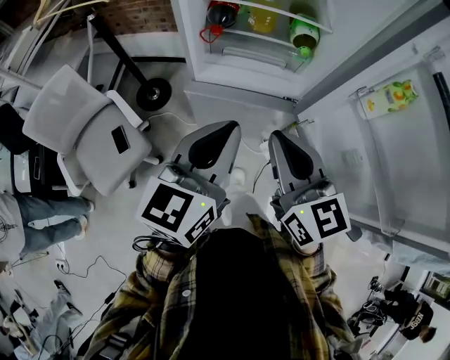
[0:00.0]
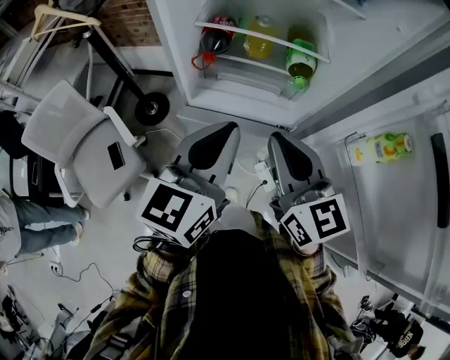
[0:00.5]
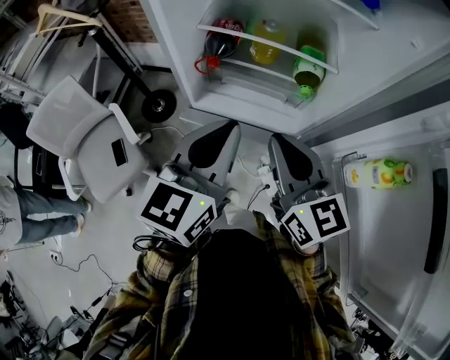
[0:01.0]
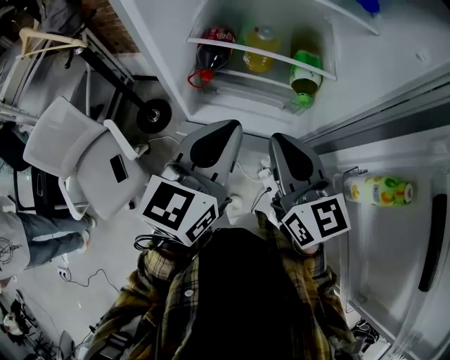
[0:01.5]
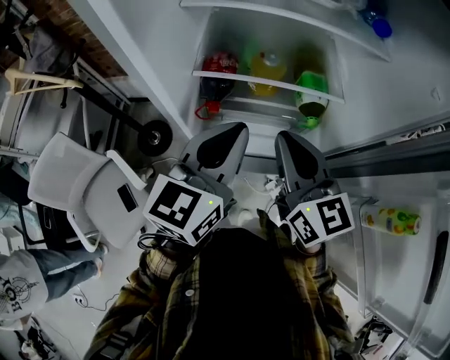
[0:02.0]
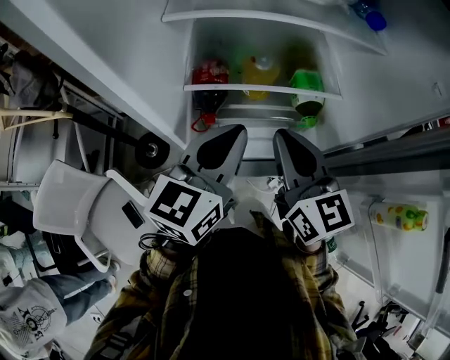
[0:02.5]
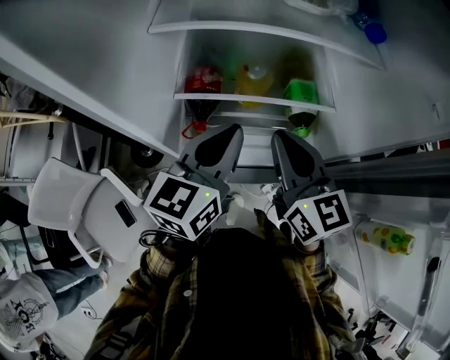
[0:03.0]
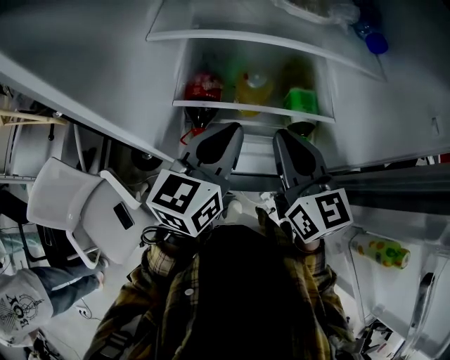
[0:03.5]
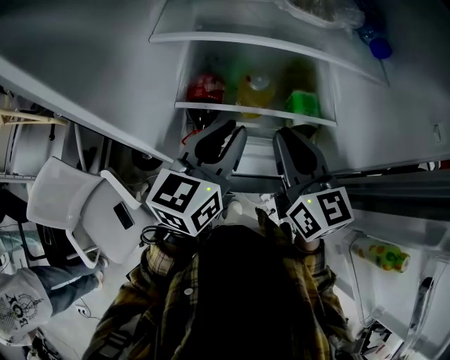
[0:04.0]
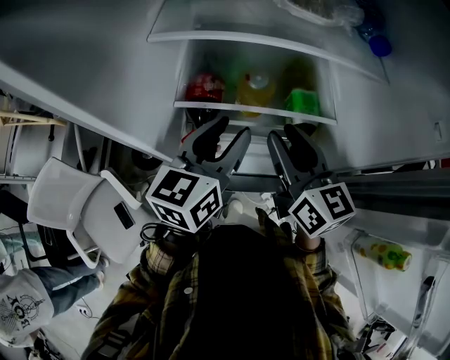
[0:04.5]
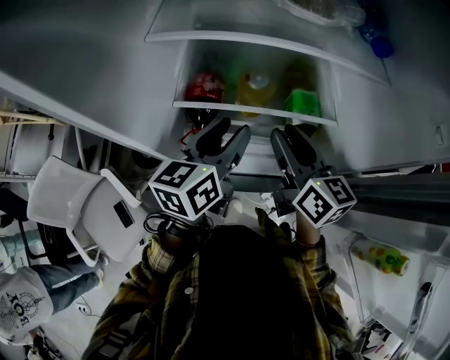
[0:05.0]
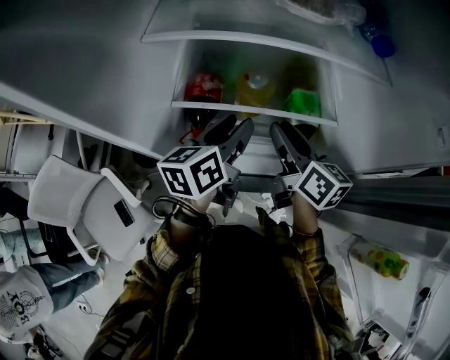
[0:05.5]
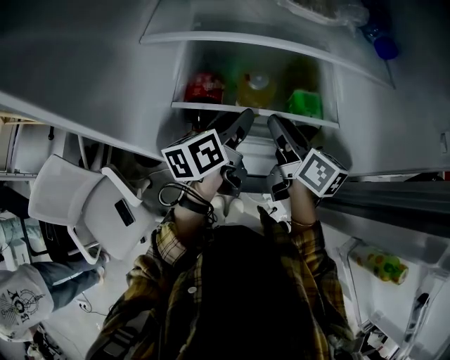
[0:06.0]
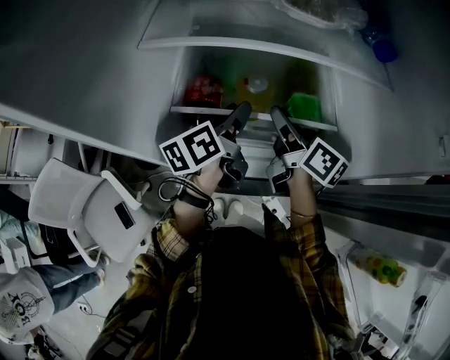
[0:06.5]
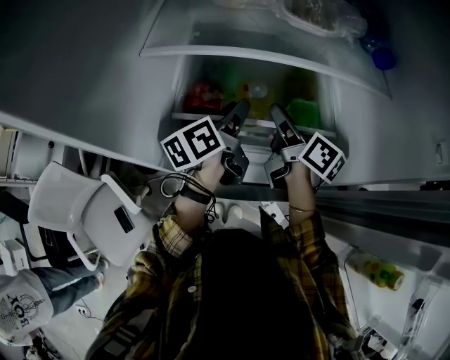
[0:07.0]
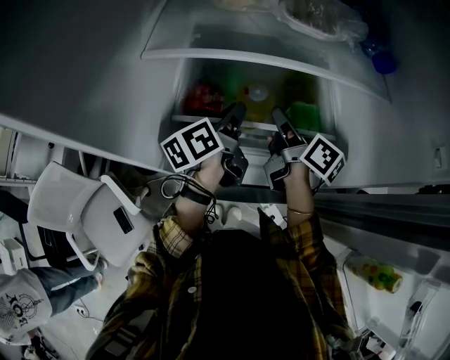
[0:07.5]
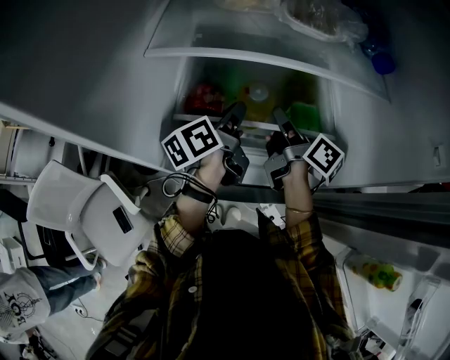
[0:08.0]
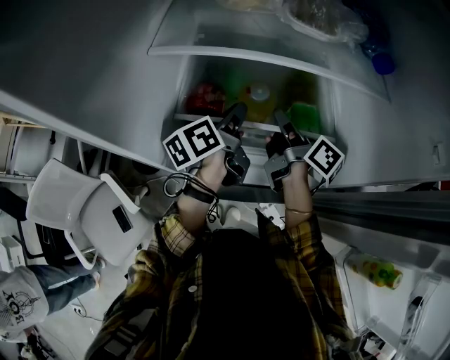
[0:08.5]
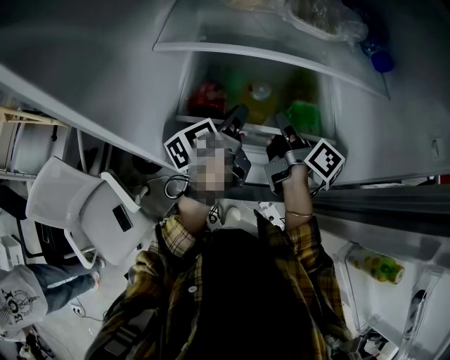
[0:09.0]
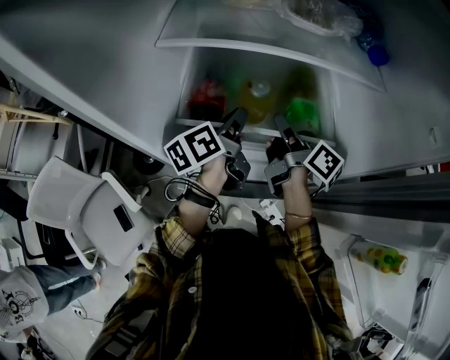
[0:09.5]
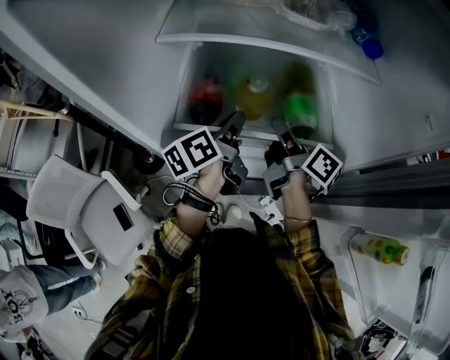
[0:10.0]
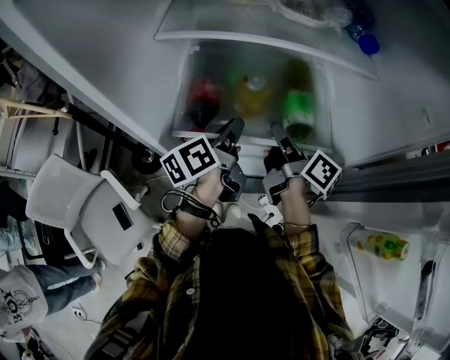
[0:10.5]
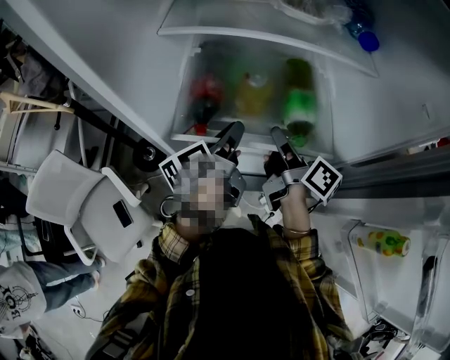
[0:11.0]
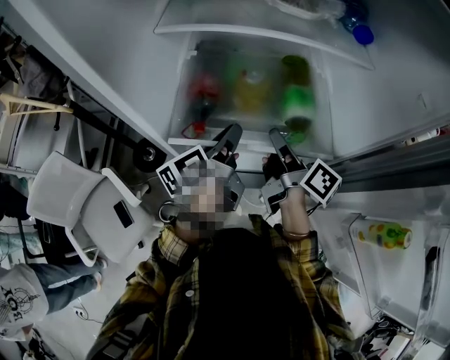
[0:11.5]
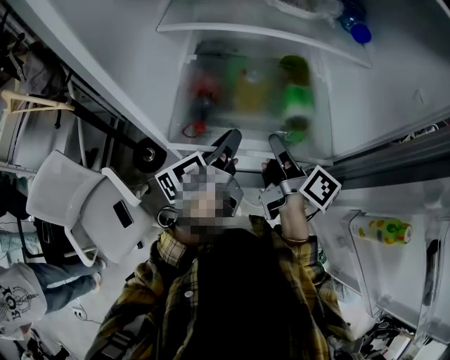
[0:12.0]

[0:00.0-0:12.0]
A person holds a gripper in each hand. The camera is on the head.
0:00.0 to 0:02.0: Both grippers travel together forward, roughly 25 cm.
0:02.0 to 0:04.0: Both grippers move forward, roughly 10 cm.
0:04.0 to 0:06.0: The two grippers go some 10 cm downward and forward. The right gripper turns by some 30 degrees, and opens its fingers. The left gripper turns by some 30 degrees, and opens.
0:06.0 to 0:08.0: The left gripper closes its fingers. The right gripper travels forward by about 5 cm, changes its angle by about 20 degrees, and closes.
0:08.0 to 0:10.0: Both grippers travel together backward, about 5 cm.
0:10.0 to 0:12.0: The two grippers go about 10 cm backward.

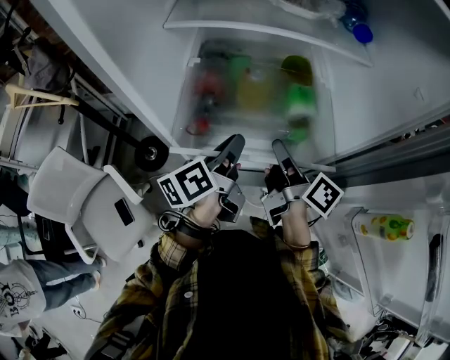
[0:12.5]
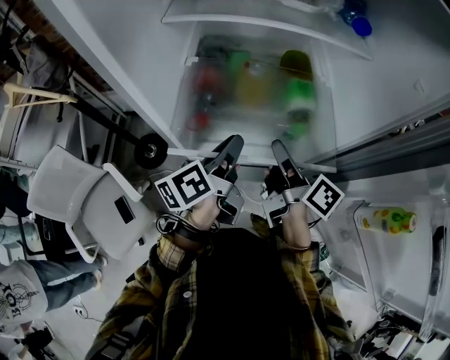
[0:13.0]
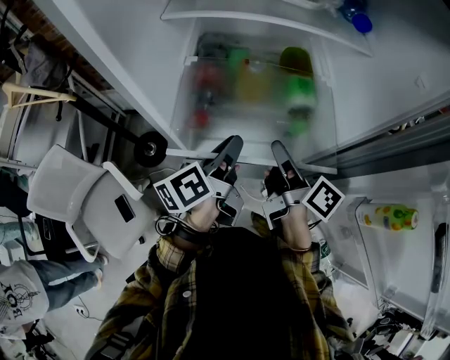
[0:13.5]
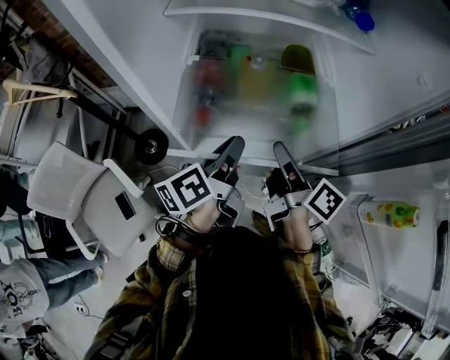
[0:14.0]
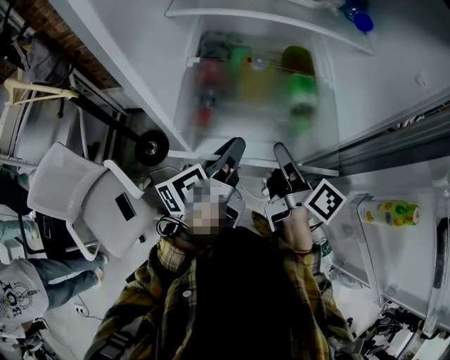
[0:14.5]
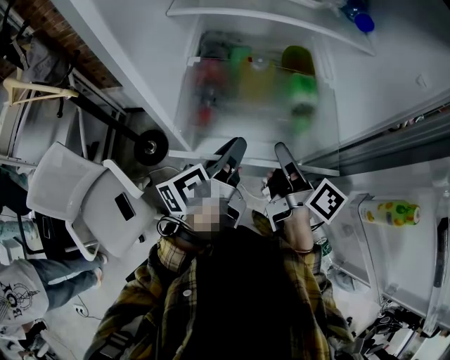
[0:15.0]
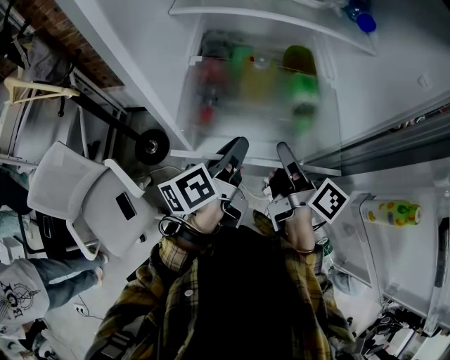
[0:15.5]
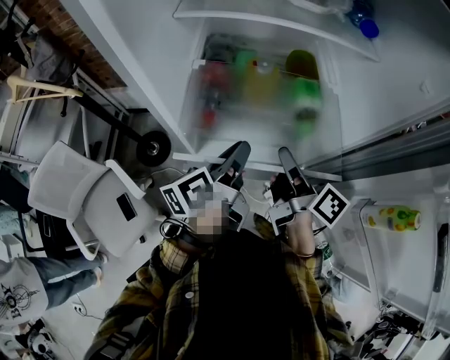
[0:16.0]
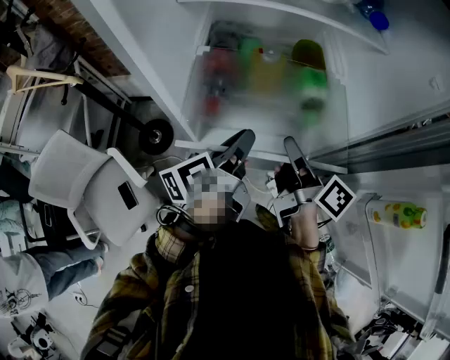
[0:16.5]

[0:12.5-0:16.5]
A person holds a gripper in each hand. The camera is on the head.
0:12.5 to 0:14.5: The grippers stay close to where they were, moving slightly.
0:14.5 to 0:16.5: Both grippers stay about where they are.

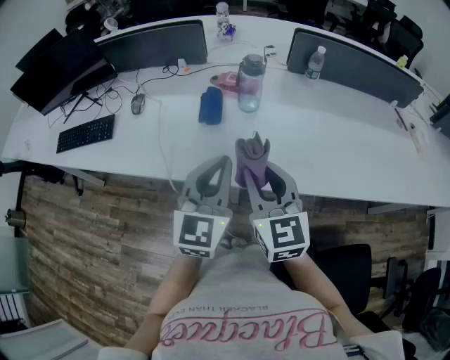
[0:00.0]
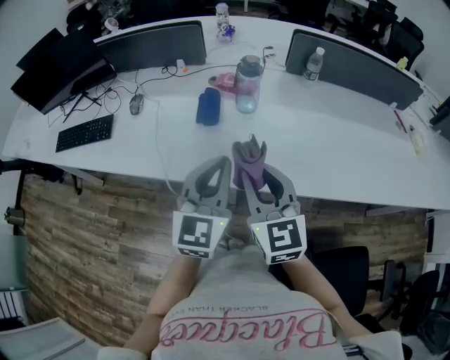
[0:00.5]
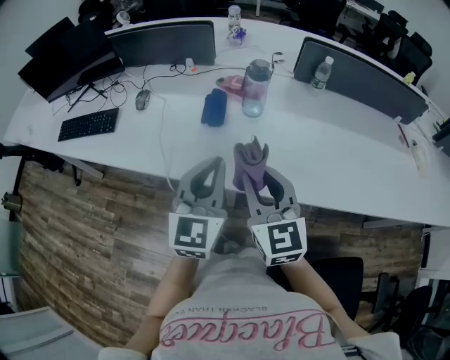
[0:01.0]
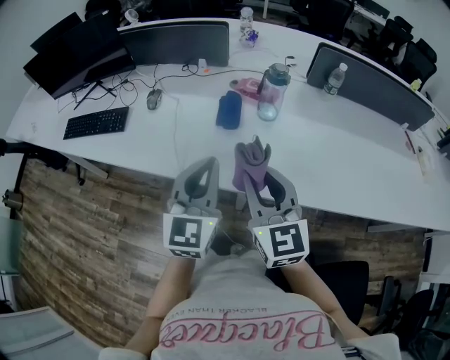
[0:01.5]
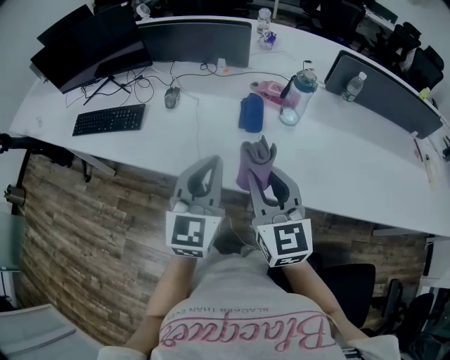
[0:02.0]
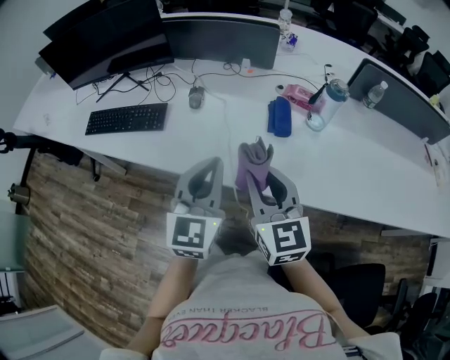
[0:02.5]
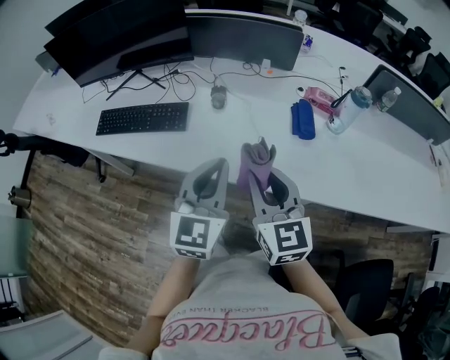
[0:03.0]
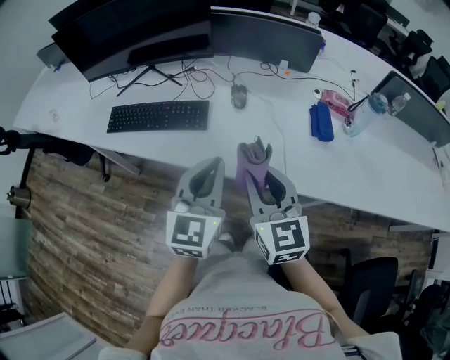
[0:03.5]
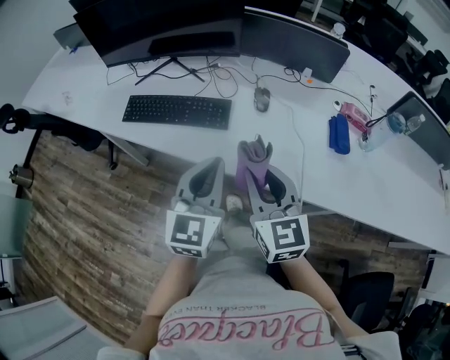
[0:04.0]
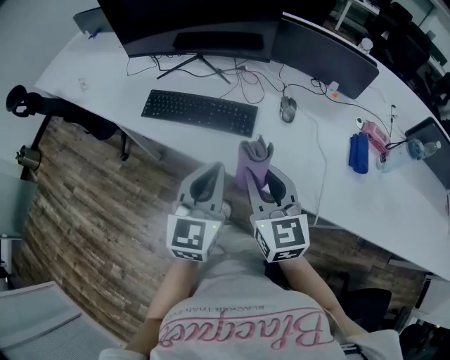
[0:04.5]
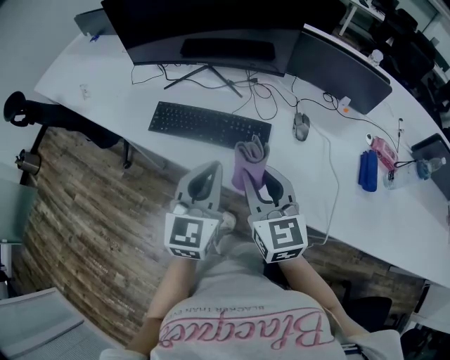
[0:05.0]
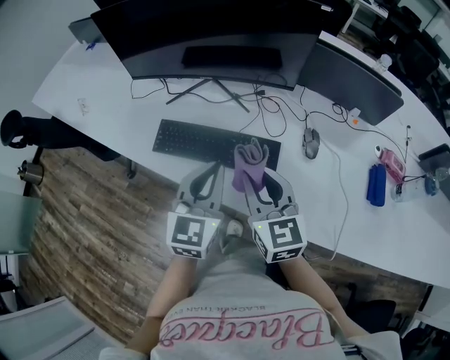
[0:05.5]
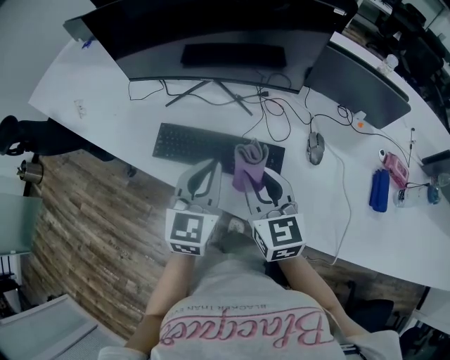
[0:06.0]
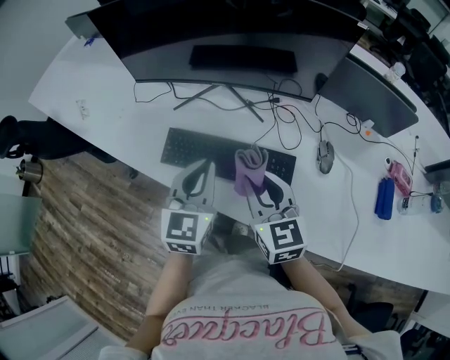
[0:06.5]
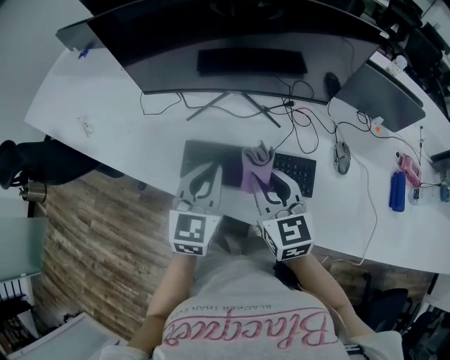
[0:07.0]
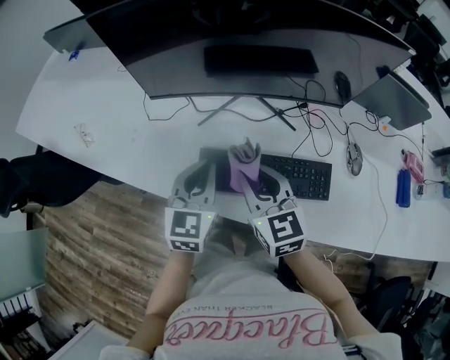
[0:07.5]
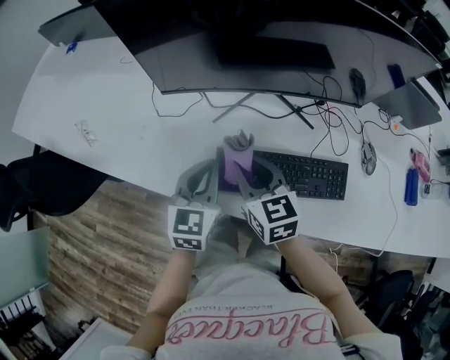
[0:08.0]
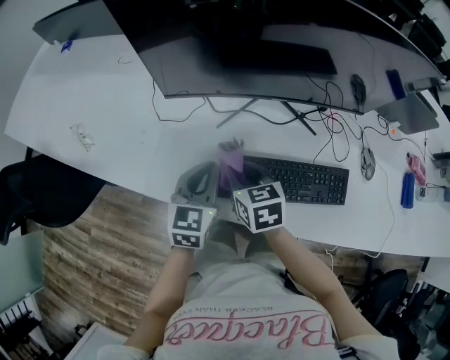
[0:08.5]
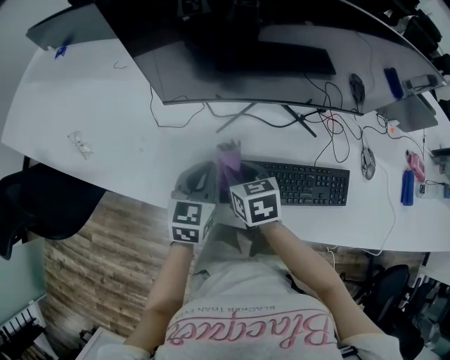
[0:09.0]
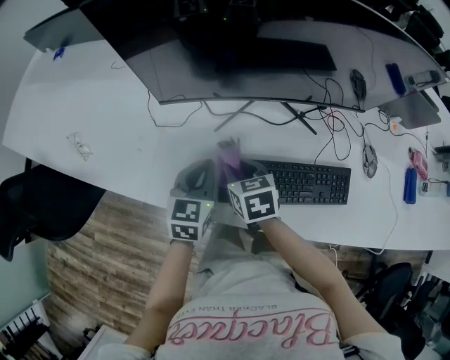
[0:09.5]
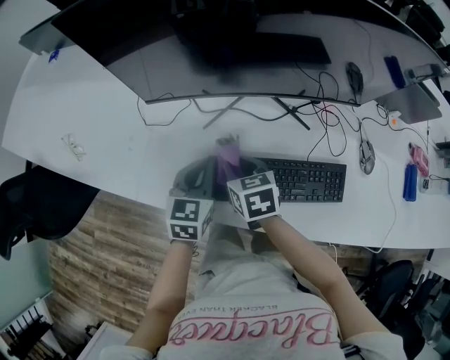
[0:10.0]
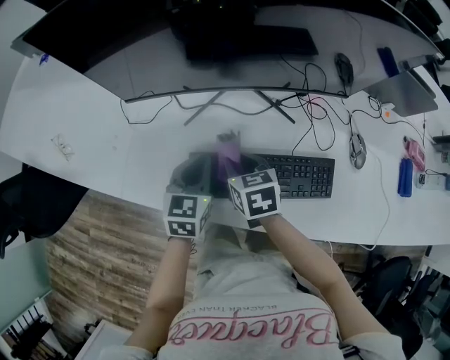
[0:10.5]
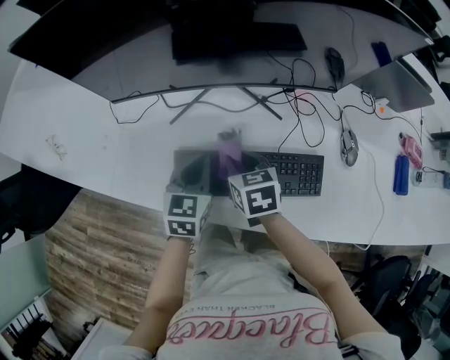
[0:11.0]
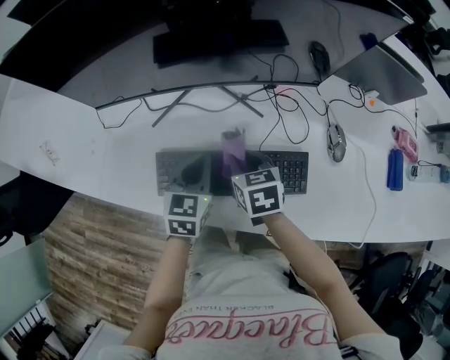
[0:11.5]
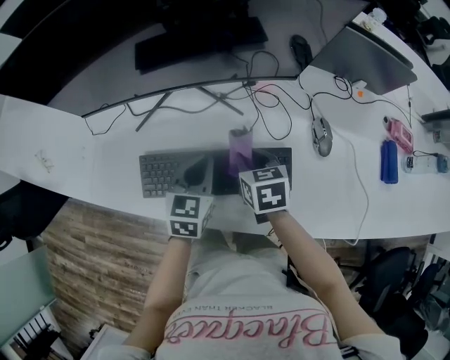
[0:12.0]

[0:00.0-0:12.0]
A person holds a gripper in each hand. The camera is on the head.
0:00.0 to 0:02.0: The grippers both shift to the left by roughly 15 cm.
0:02.0 to 0:04.0: Both grippers travel together to the left, about 35 cm.
0:04.0 to 0:06.0: Both grippers move forward and to the left, roughly 30 cm.
0:06.0 to 0:08.0: Both grippers move to the left and forward, about 30 cm.
0:08.0 to 0:10.0: The two grippers go approximately 10 cm downward. The right gripper swivels about 20 degrees.
0:10.0 to 0:12.0: Both grippers travel together to the right, roughly 25 cm.
